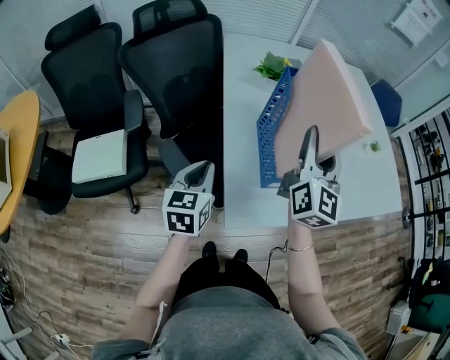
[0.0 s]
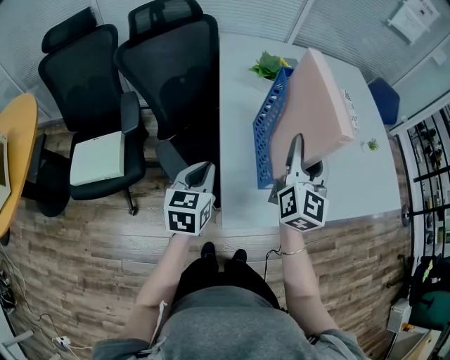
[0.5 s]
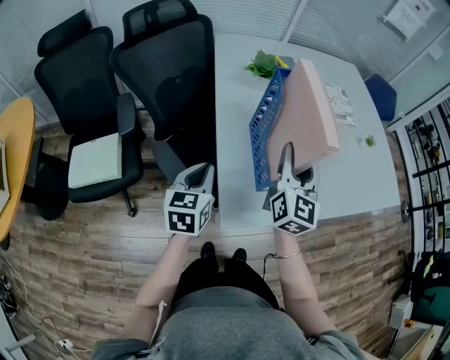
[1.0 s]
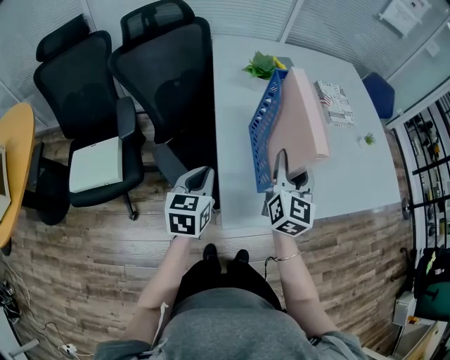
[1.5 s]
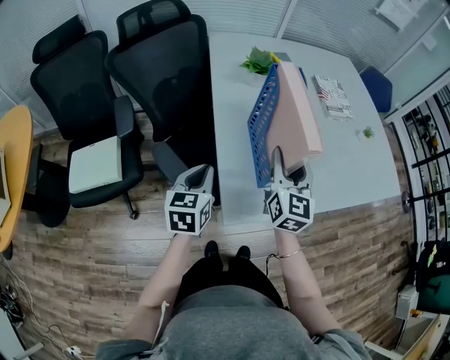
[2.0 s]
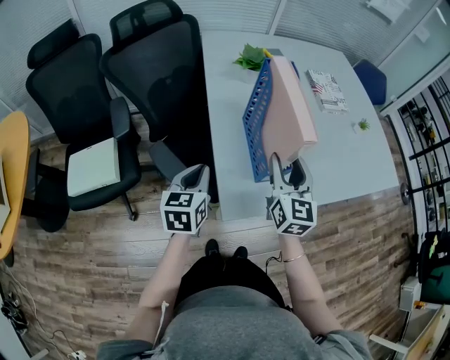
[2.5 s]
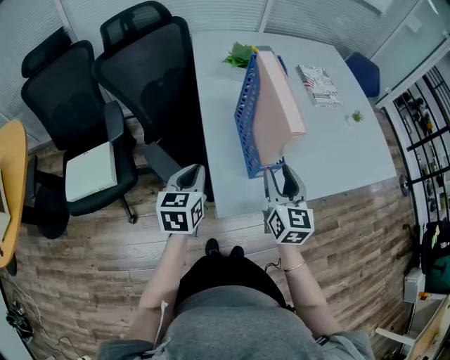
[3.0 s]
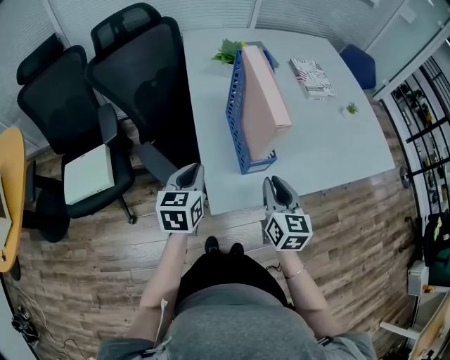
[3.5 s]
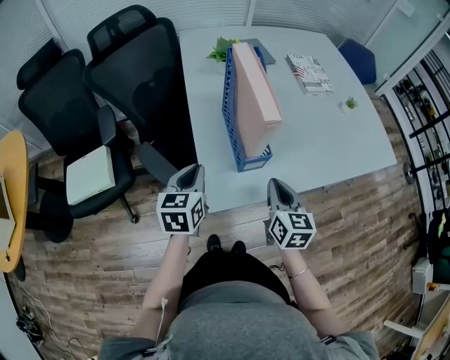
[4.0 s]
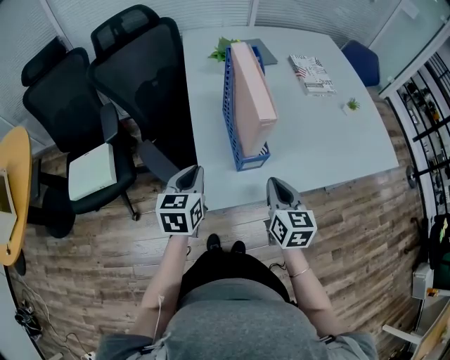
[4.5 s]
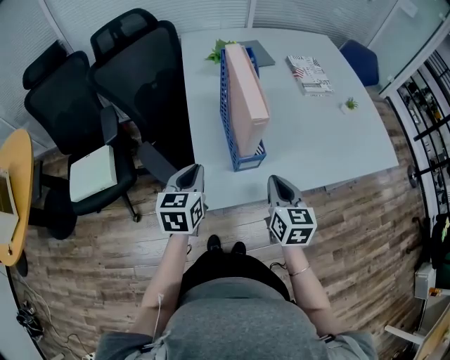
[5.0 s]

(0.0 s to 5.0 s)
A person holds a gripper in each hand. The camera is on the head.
0.0 s - 2.5 s: The right gripper is displaced downward and backward by about 15 cm.
2.5 s - 5.0 s: The right gripper is displaced backward, downward and to the right by roughly 10 cm, swivels about 20 degrees, and closes its fingers. The left gripper is displaced to the right by about 5 cm.

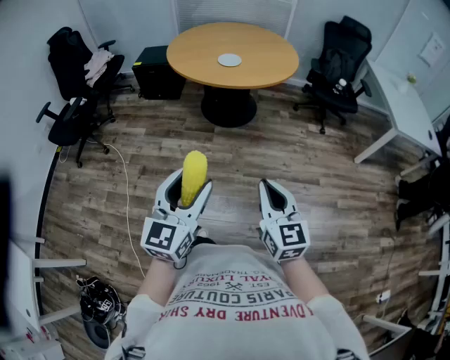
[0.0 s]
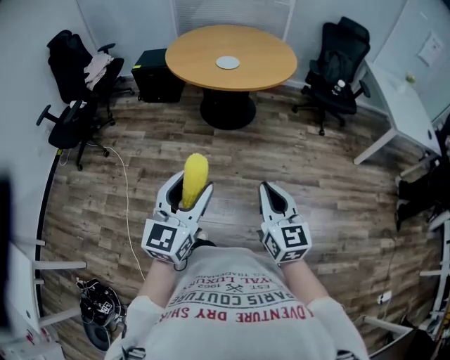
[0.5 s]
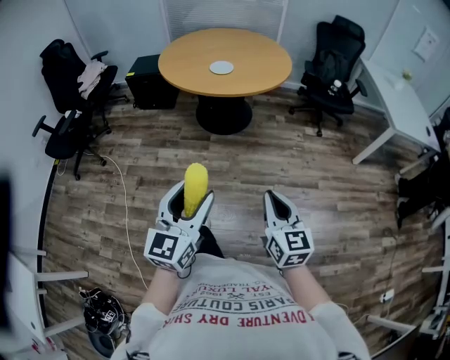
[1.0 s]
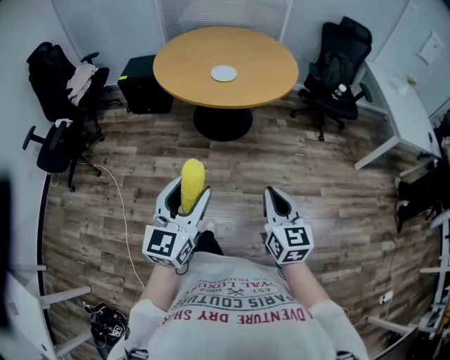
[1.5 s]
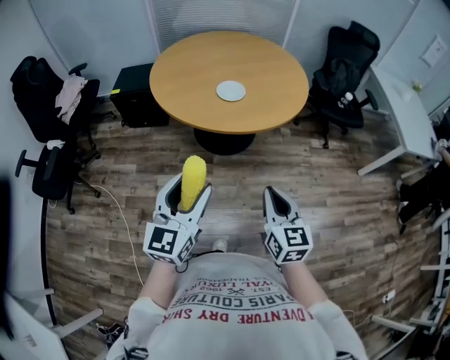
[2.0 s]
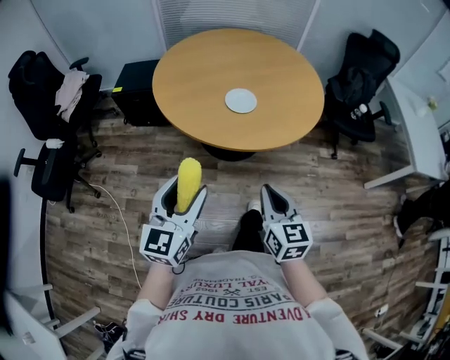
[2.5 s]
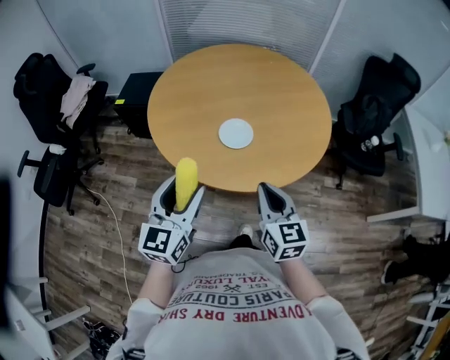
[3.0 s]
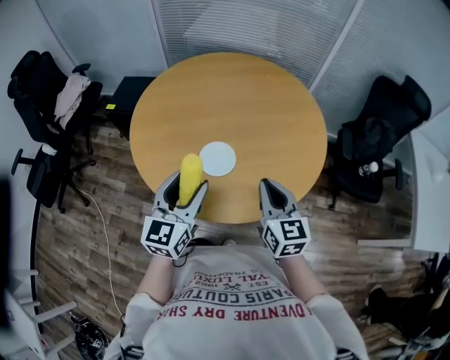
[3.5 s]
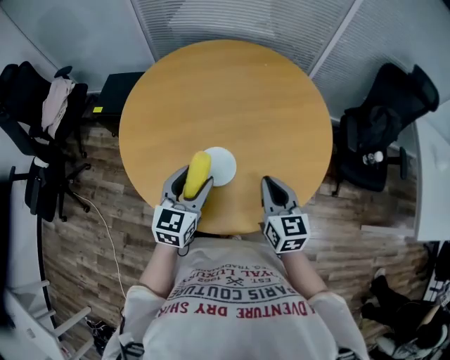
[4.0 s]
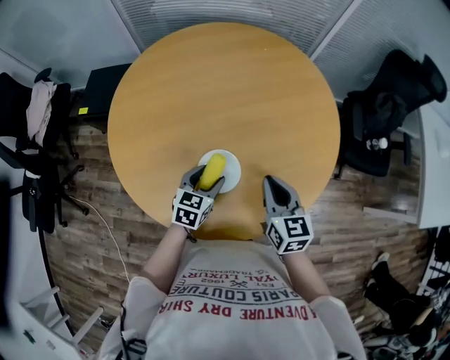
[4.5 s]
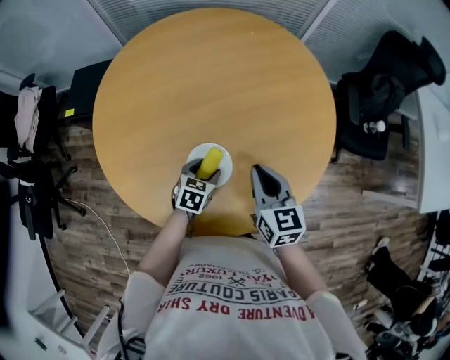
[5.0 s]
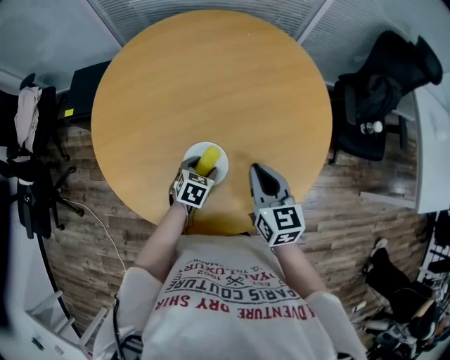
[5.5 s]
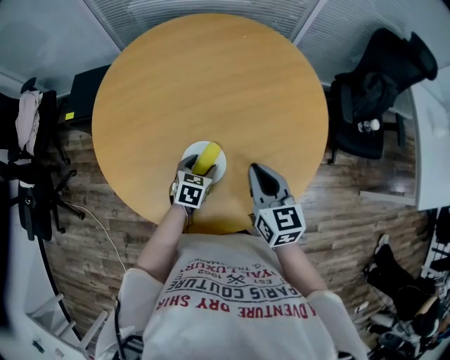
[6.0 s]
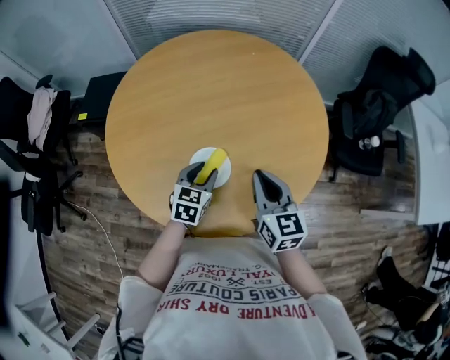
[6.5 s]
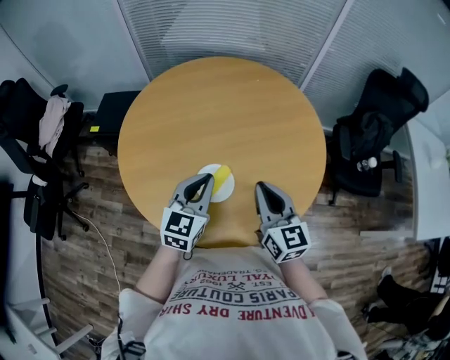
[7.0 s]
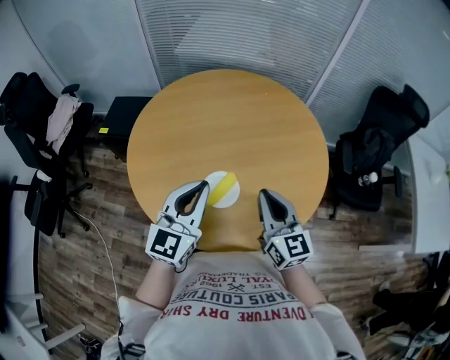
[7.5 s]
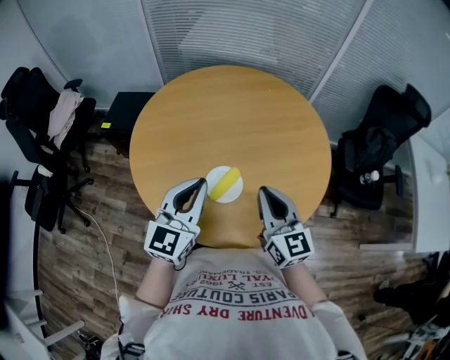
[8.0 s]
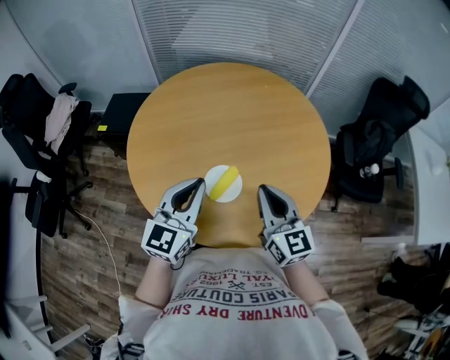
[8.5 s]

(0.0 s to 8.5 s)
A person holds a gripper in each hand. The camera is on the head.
0.0 s - 2.0 s: Both grippers travel together forward, some 30 cm.
2.0 s - 4.0 s: Both grippers are carried forward, about 50 cm.
4.0 s - 6.5 s: The left gripper heads downward and forward, covering approximately 15 cm.
6.5 s - 8.5 s: The left gripper travels upward by roughly 20 cm, tips its fingers upward by approximately 30 degrees, and closes its fingers. Meanwhile the right gripper goes approximately 10 cm upward.

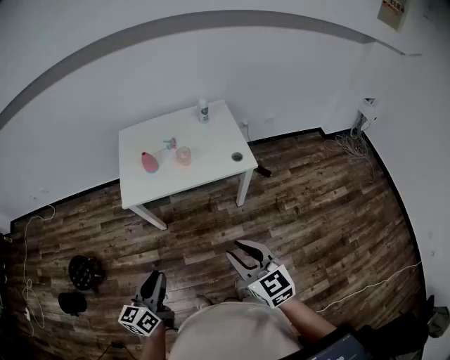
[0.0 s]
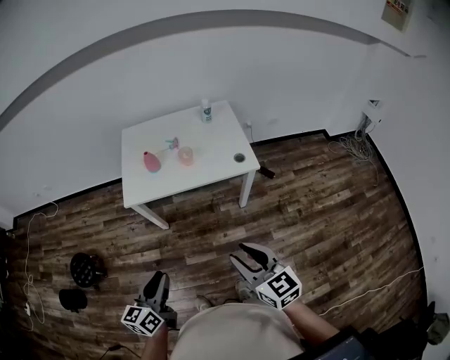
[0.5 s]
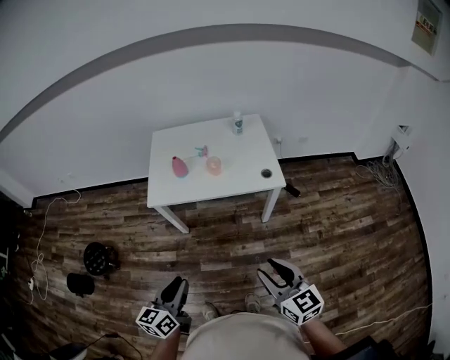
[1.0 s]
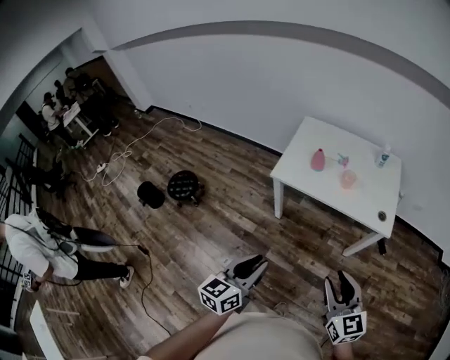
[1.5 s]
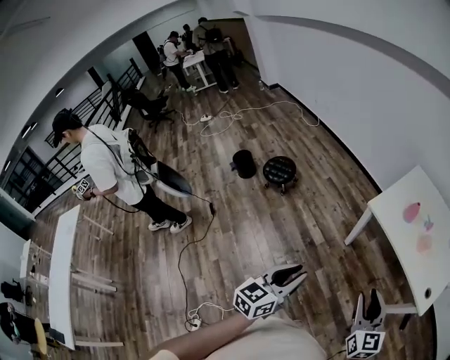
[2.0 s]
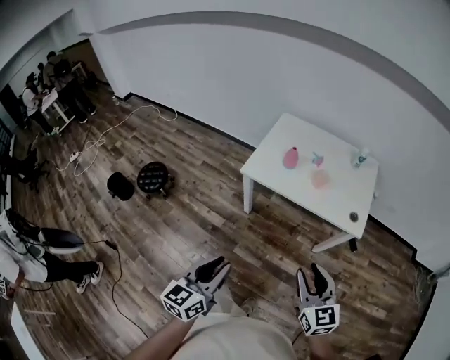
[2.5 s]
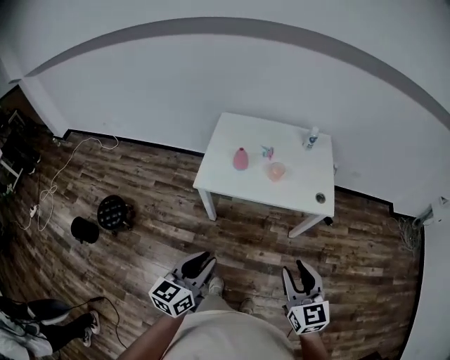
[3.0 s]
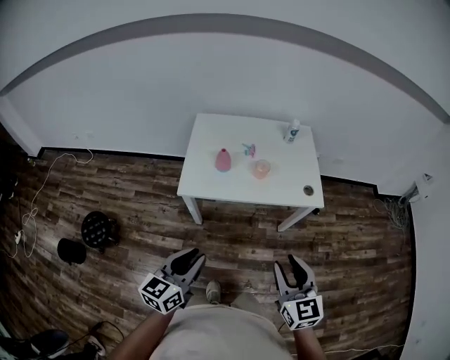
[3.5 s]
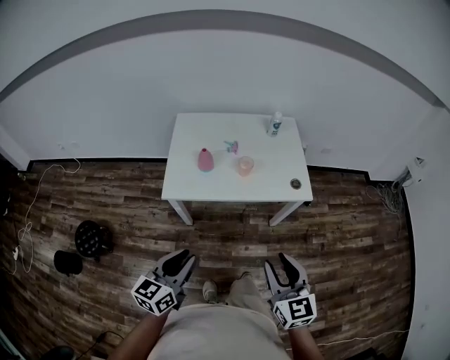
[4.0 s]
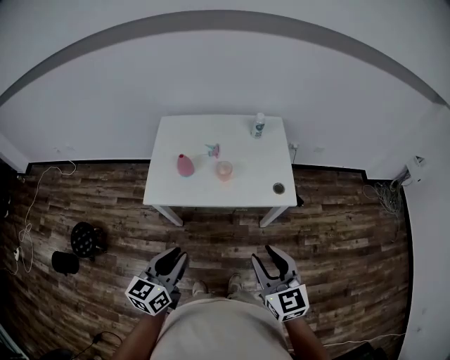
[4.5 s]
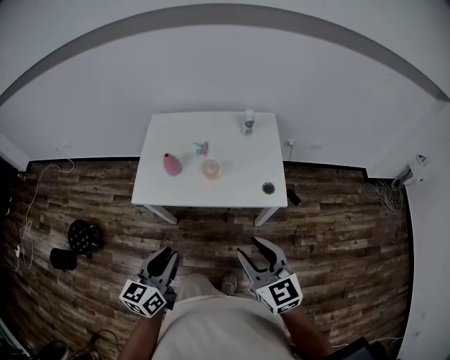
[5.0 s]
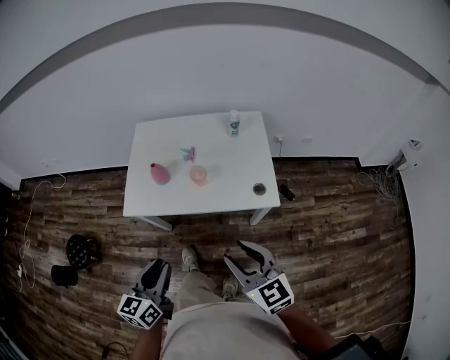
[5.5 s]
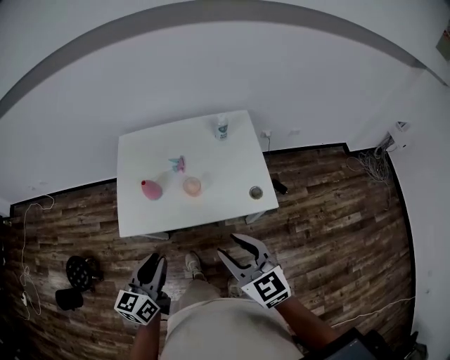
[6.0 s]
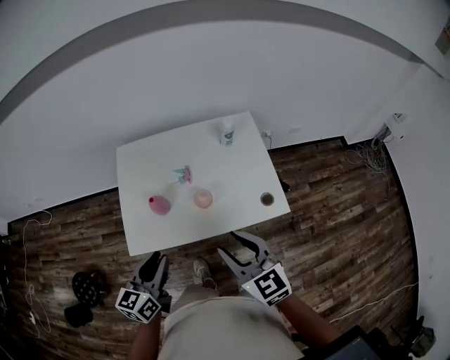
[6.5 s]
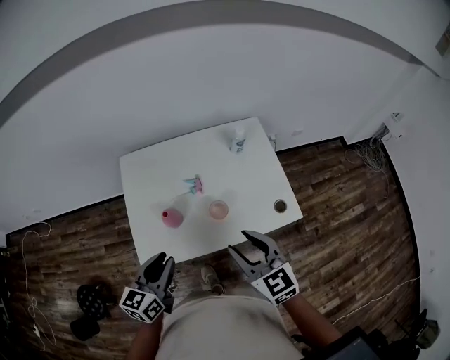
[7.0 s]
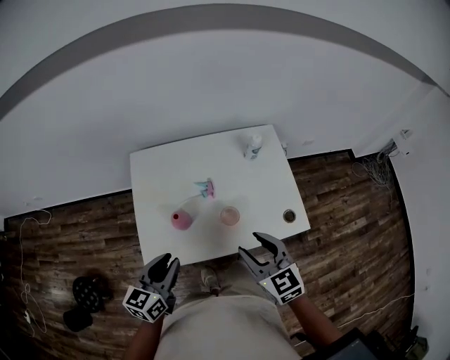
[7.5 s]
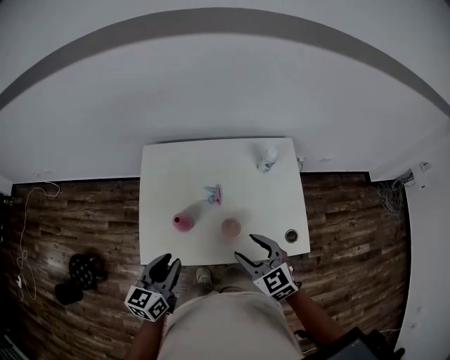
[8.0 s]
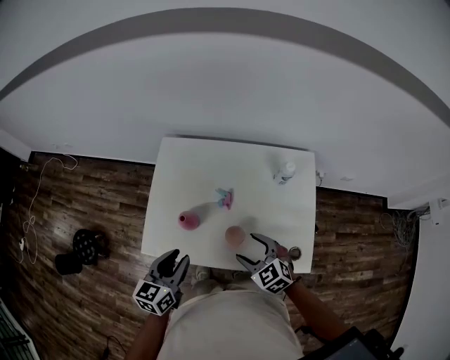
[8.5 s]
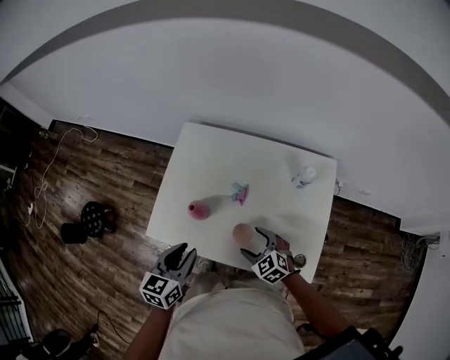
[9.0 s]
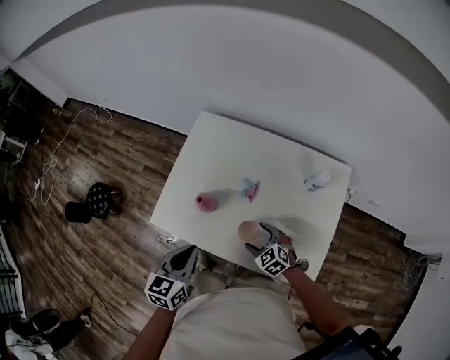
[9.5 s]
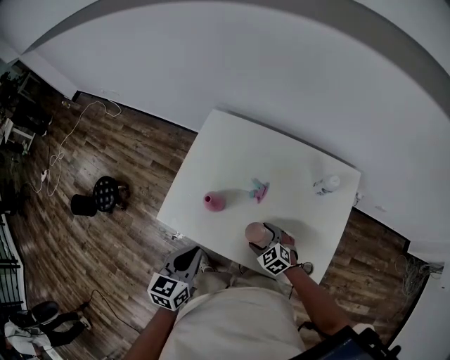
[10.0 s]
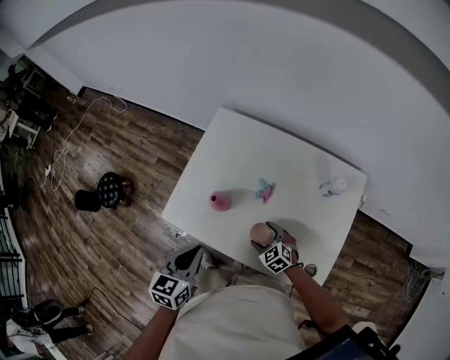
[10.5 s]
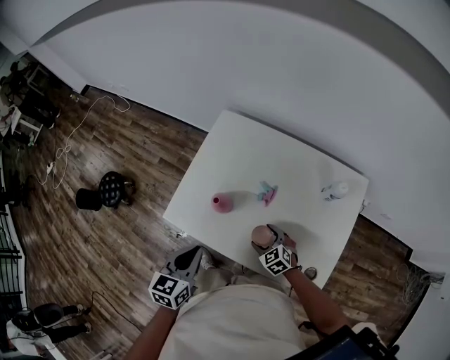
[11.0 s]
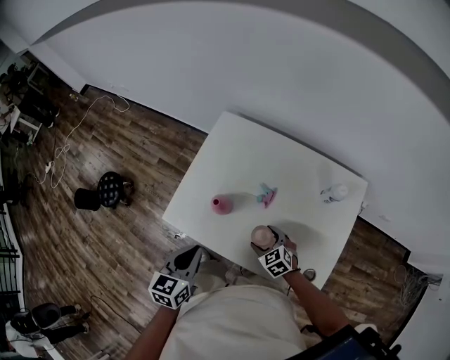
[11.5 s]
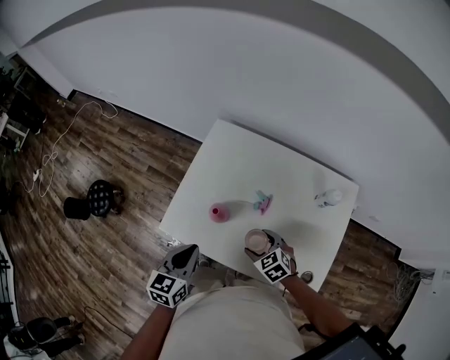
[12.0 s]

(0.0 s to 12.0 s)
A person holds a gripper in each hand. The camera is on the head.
0.0 s - 2.0 s: The left gripper ends up approximately 15 cm from where it was, and rotates roughly 40 degrees. The right gripper changes place by some 15 cm, and rotates roughly 40 degrees.
2.0 s - 4.0 s: The left gripper changes place by about 30 cm, and swivels roughly 40 degrees; the right gripper shifts by about 15 cm, and changes its angle by roughly 40 degrees.
4.0 s - 6.0 s: The left gripper moves forward and to the right, approximately 20 cm. Meanwhile the right gripper goes approximately 20 cm forward.
6.0 s - 8.0 s: The right gripper heads forward and downward, covering roughly 25 cm; the left gripper goes roughly 20 cm forward and to the left.
8.0 s - 10.0 s: The right gripper travels downward by approximately 25 cm, and changes its angle by about 40 degrees. Meanwhile the left gripper changes place by about 5 cm, changes its angle by some 30 degrees, and closes.
10.0 s - 12.0 s: The right gripper is displaced upward by roughly 10 cm, while the left gripper changes place by some 5 cm.

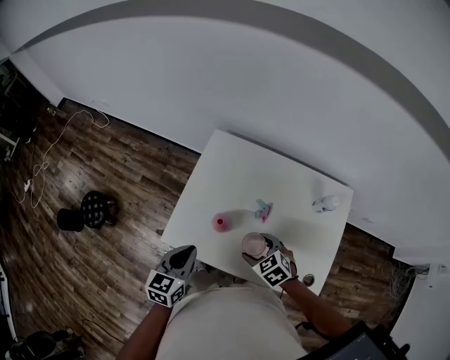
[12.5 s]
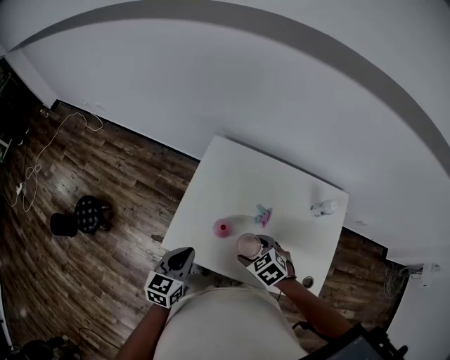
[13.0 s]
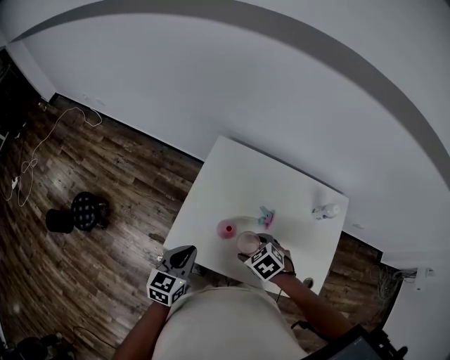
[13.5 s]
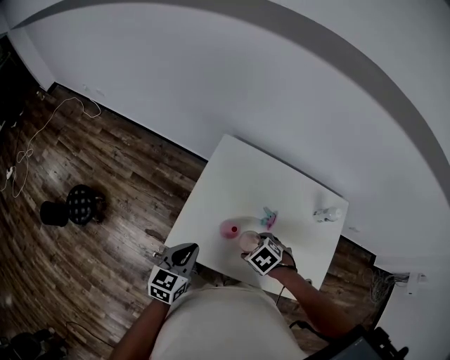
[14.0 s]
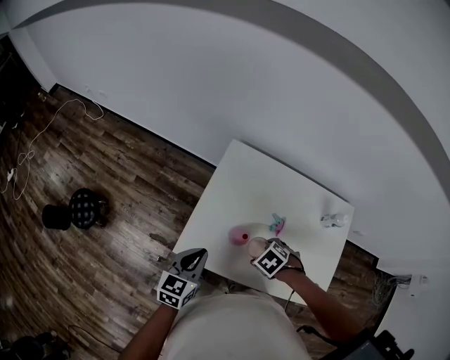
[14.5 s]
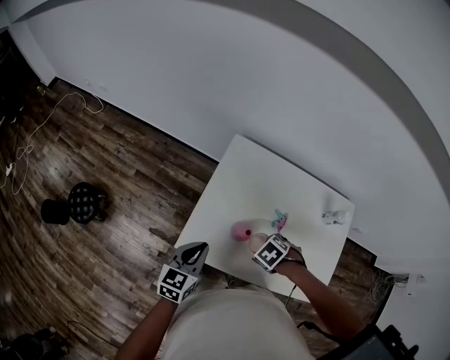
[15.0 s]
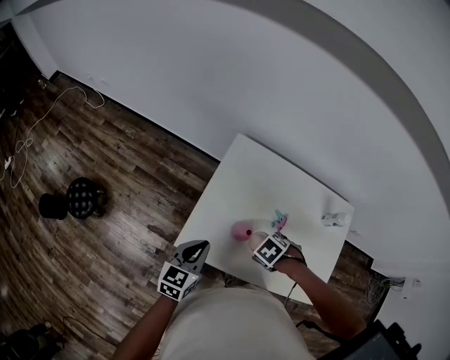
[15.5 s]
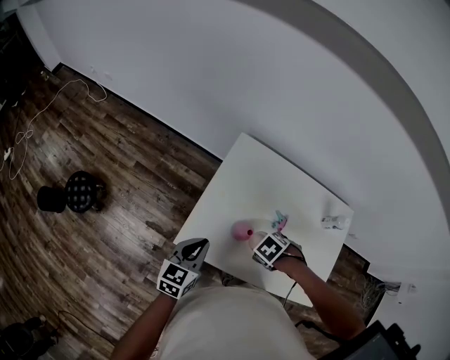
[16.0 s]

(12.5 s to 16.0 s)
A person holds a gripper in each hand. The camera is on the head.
12.5 s - 14.5 s: The right gripper shifts by roughly 10 cm, and rotates approximately 30 degrees; the left gripper shifts by roughly 10 cm.
14.5 s - 16.0 s: The grippers make only small movements.
